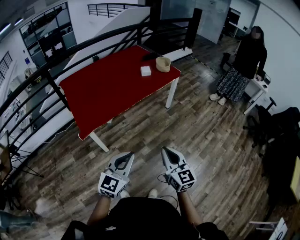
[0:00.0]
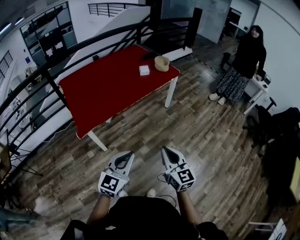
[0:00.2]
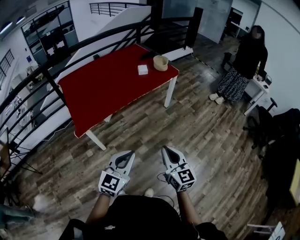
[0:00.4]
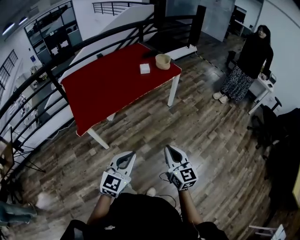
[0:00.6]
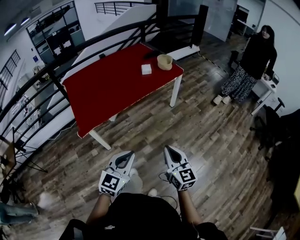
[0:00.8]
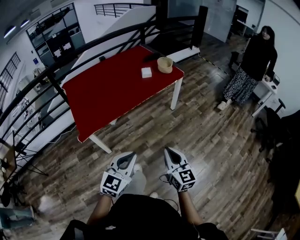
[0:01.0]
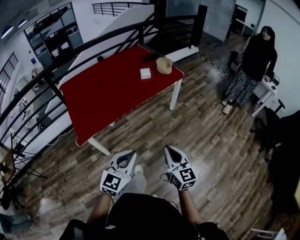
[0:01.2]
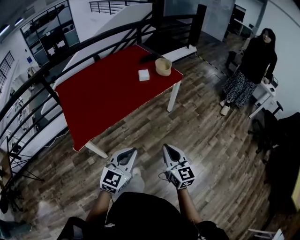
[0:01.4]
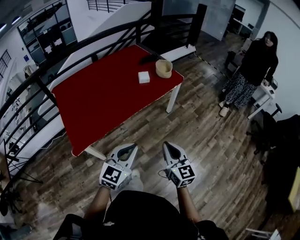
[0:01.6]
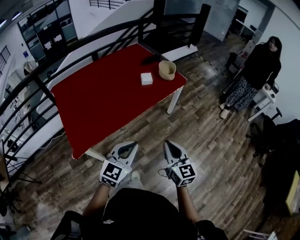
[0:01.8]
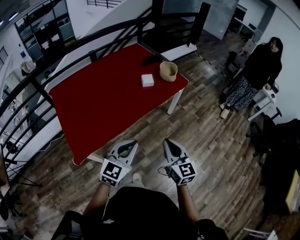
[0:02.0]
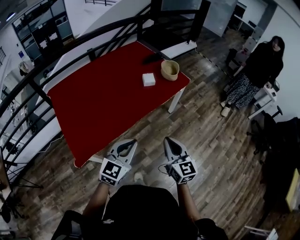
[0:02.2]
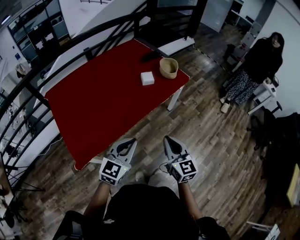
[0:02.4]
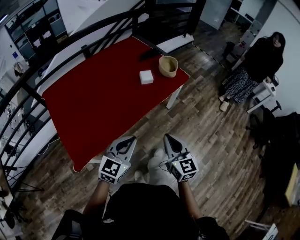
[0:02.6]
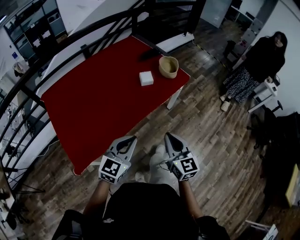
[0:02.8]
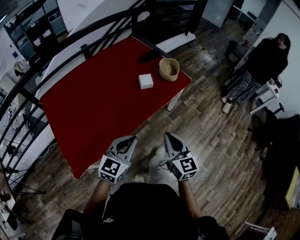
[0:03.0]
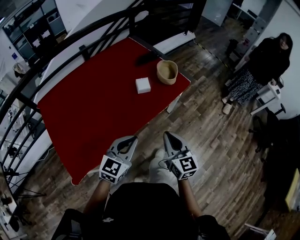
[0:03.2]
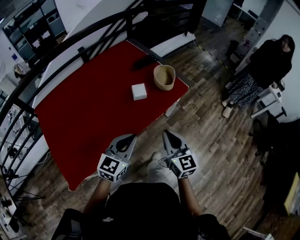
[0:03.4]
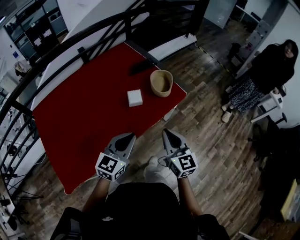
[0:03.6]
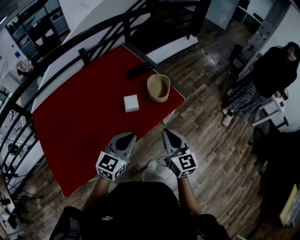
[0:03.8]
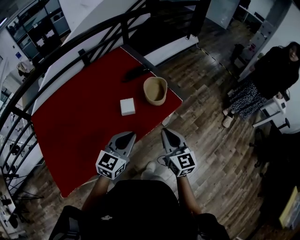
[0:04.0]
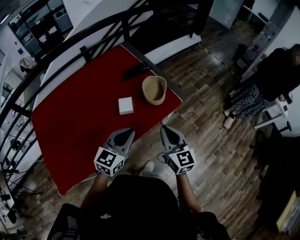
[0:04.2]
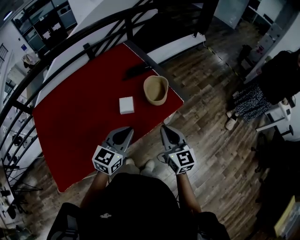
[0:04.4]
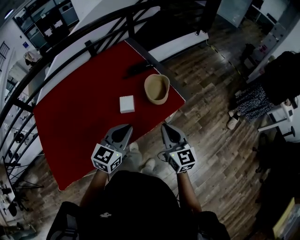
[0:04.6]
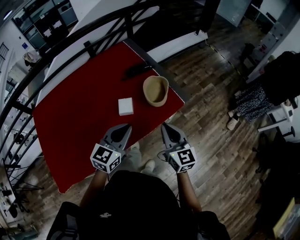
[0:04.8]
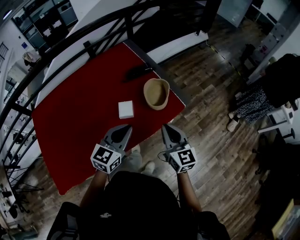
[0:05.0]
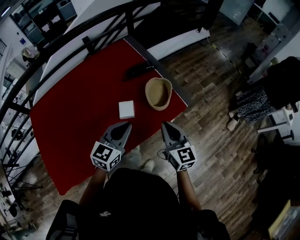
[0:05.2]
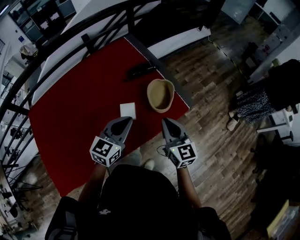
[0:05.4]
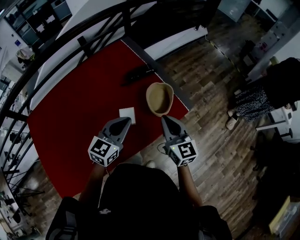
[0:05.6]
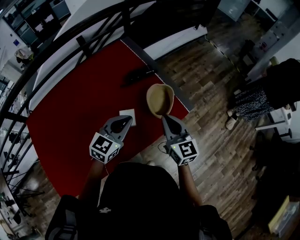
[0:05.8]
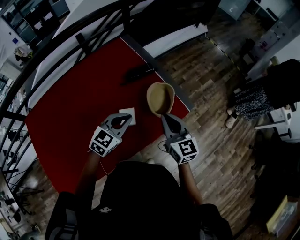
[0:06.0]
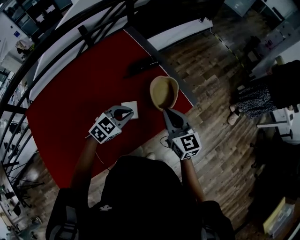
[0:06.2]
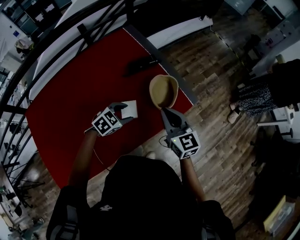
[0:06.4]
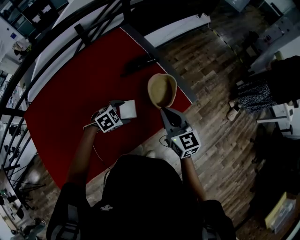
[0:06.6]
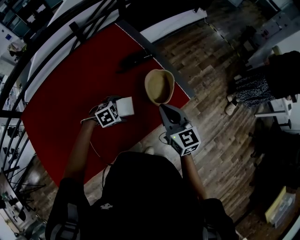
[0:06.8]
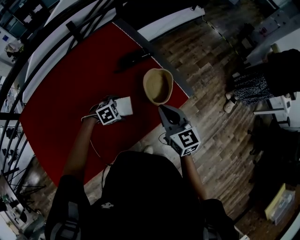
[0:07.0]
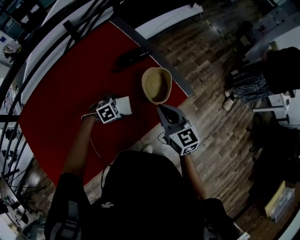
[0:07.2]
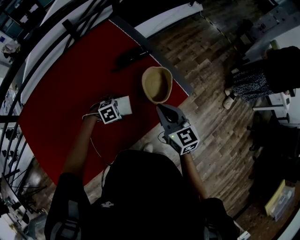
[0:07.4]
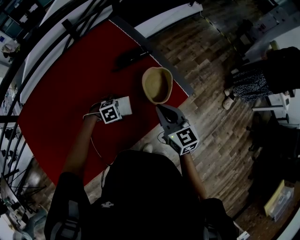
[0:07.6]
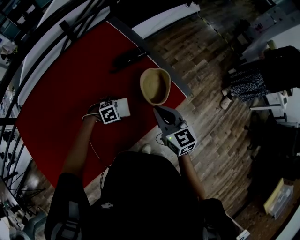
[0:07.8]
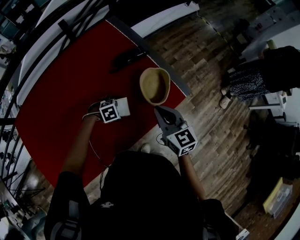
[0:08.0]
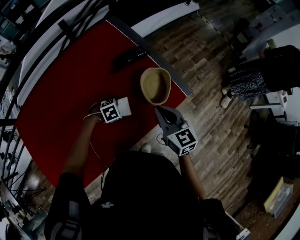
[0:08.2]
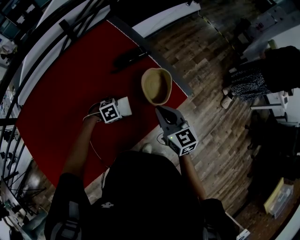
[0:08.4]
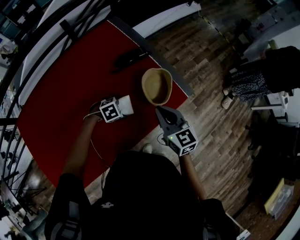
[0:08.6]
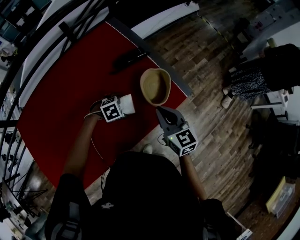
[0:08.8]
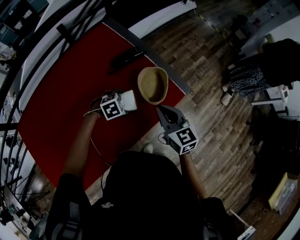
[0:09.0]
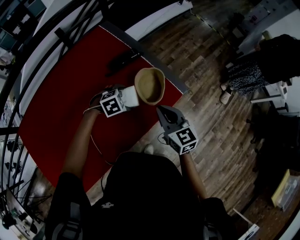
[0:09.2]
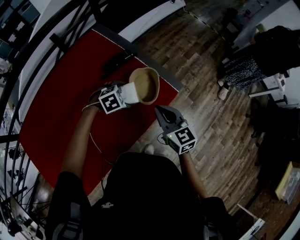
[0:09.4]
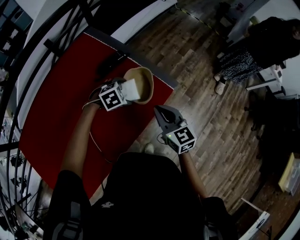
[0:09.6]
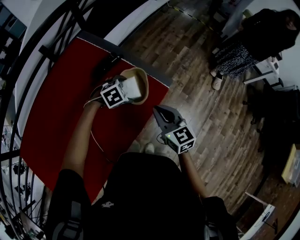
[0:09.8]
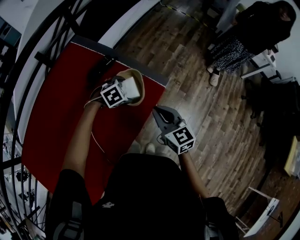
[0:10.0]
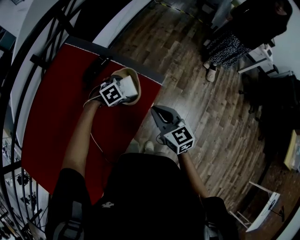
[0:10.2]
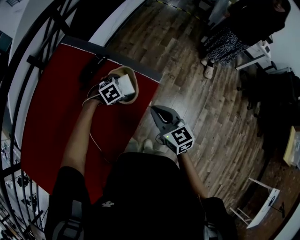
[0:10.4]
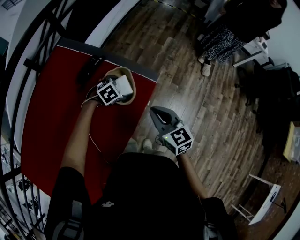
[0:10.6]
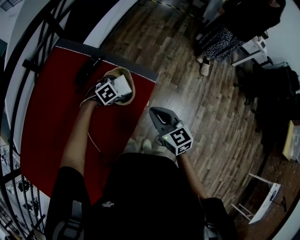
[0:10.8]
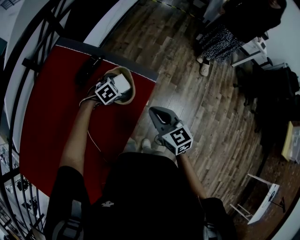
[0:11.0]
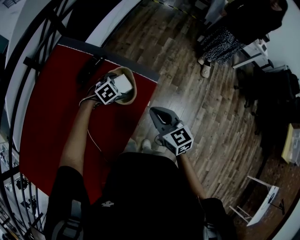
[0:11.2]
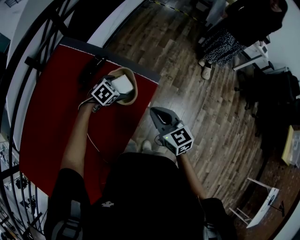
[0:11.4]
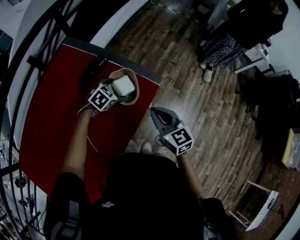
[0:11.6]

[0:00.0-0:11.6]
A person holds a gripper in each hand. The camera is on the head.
0:00.0 to 0:01.4: The grippers both shift forward by roughly 15 cm.
0:01.4 to 0:02.8: The two grippers go about 25 cm forward and to the left.
0:02.8 to 0:04.4: Both grippers travel together forward and to the right, roughly 35 cm.
0:04.4 to 0:05.8: The grippers both shift forward by some 15 cm.
0:05.8 to 0:07.2: The left gripper shifts roughly 25 cm downward, points its fingers some 50 degrees further downward, and opens up.
0:07.2 to 0:08.8: The grippers move only a little.
0:08.8 to 0:10.2: The left gripper goes roughly 20 cm forward and to the right. Meanwhile the right gripper heads to the right, covering about 10 cm.
0:10.2 to 0:11.6: There are only small adjustments of the grippers.

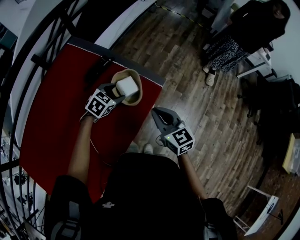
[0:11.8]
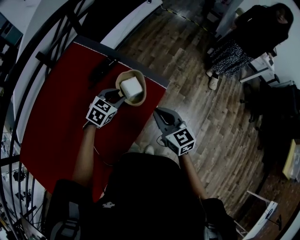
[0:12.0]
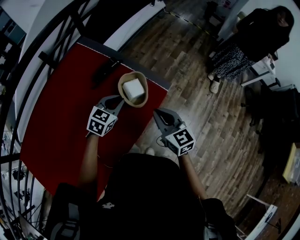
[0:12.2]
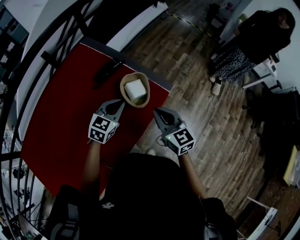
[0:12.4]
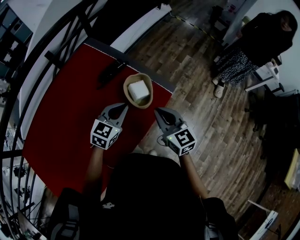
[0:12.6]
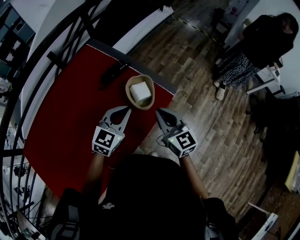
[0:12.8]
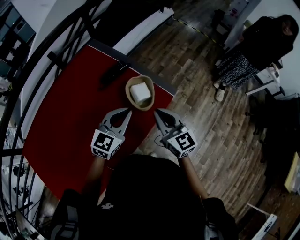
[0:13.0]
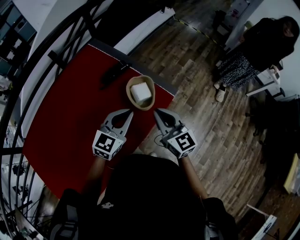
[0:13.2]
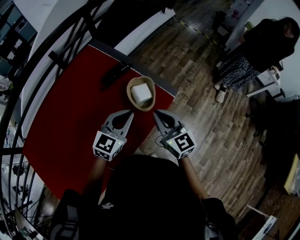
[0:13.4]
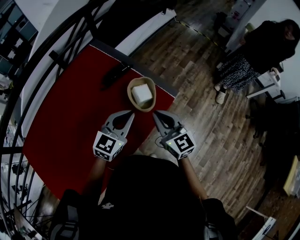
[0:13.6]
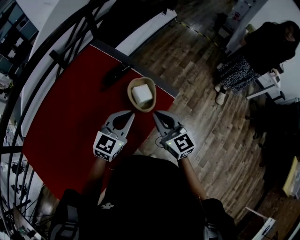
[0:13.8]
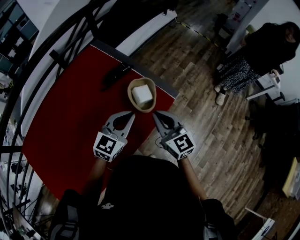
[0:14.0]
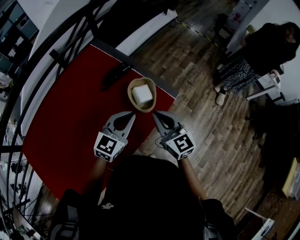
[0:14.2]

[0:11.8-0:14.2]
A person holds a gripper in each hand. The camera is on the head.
0:11.8 to 0:13.0: The left gripper heads upward and backward, covering some 20 cm, points its fingers roughly 30 degrees further upward, and closes up; the right gripper travels upward by approximately 5 cm.
0:13.0 to 0:14.2: The grippers make only small movements.

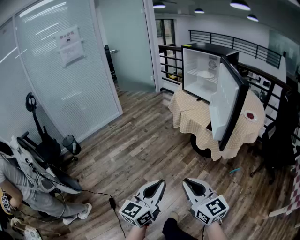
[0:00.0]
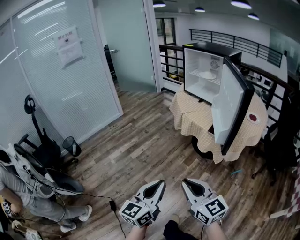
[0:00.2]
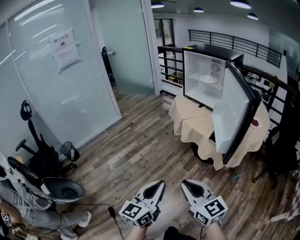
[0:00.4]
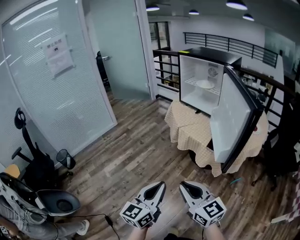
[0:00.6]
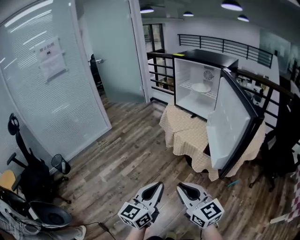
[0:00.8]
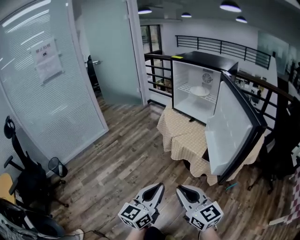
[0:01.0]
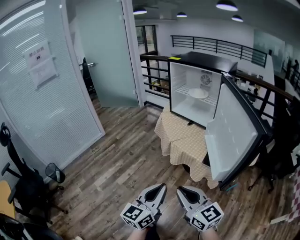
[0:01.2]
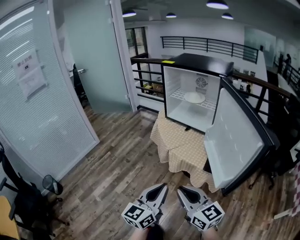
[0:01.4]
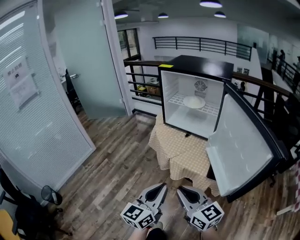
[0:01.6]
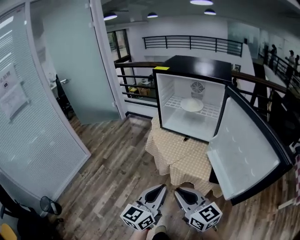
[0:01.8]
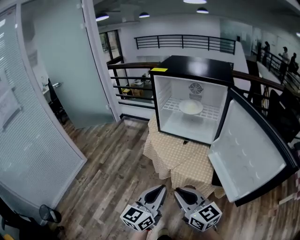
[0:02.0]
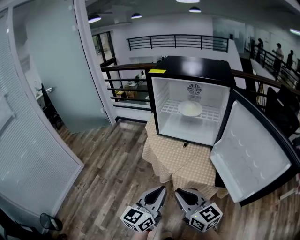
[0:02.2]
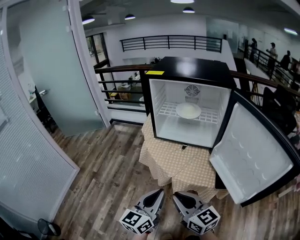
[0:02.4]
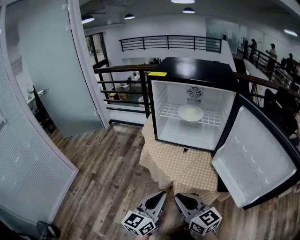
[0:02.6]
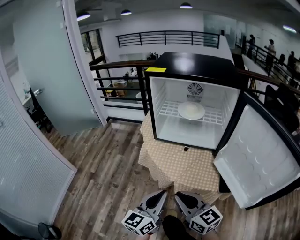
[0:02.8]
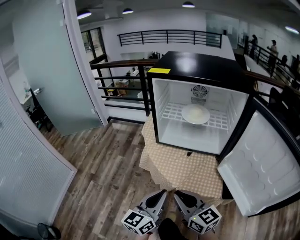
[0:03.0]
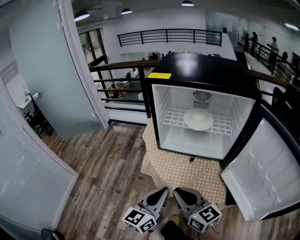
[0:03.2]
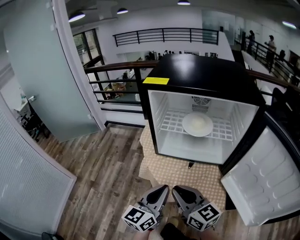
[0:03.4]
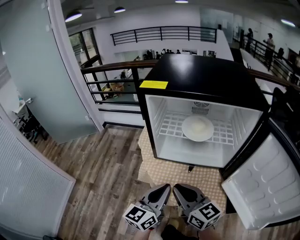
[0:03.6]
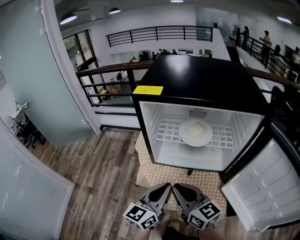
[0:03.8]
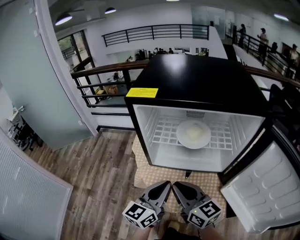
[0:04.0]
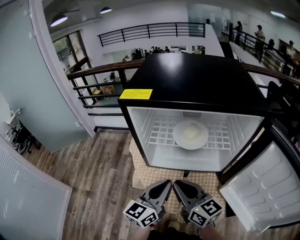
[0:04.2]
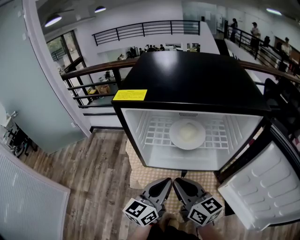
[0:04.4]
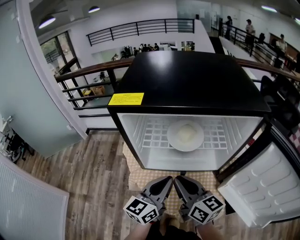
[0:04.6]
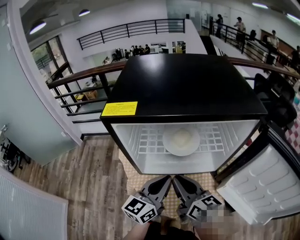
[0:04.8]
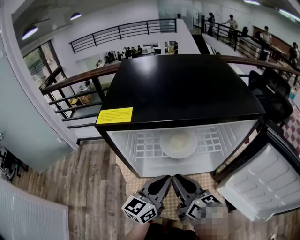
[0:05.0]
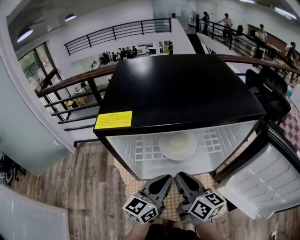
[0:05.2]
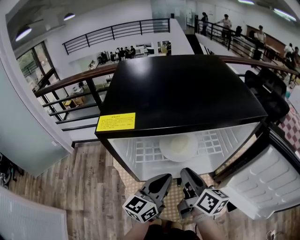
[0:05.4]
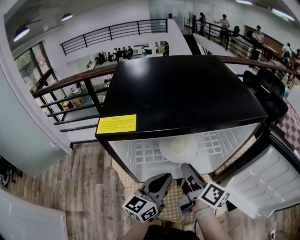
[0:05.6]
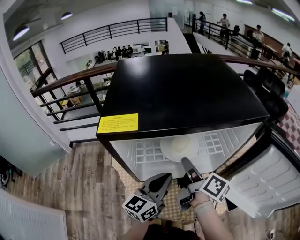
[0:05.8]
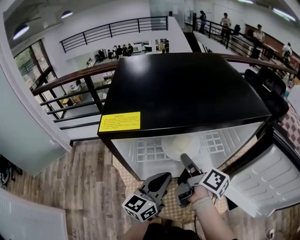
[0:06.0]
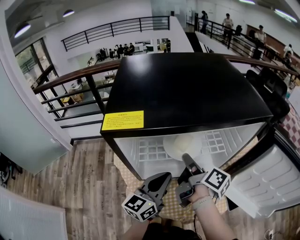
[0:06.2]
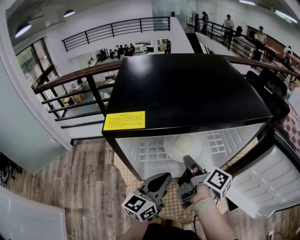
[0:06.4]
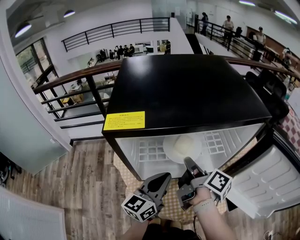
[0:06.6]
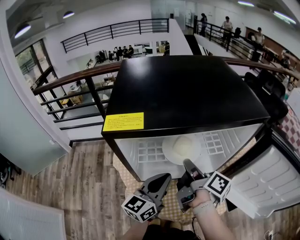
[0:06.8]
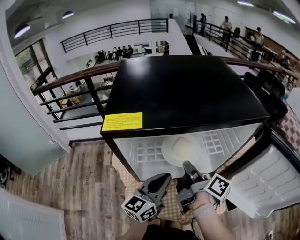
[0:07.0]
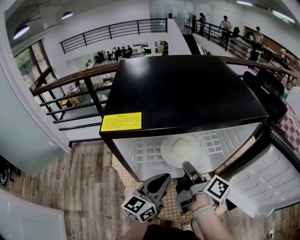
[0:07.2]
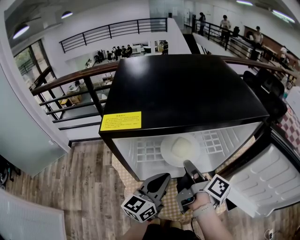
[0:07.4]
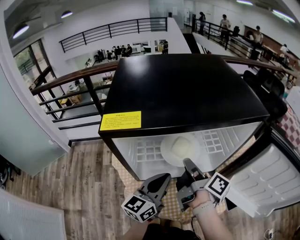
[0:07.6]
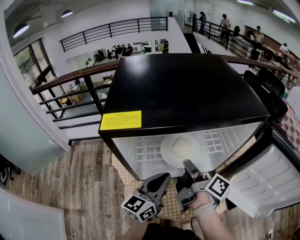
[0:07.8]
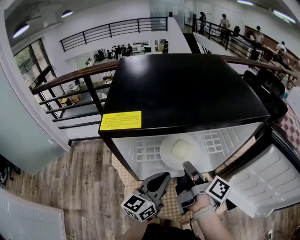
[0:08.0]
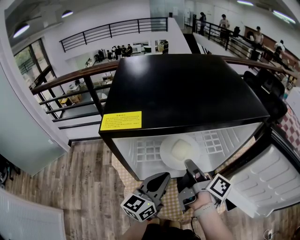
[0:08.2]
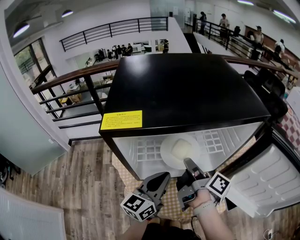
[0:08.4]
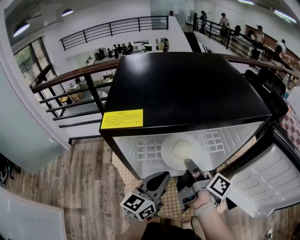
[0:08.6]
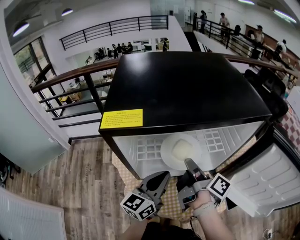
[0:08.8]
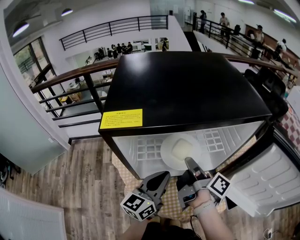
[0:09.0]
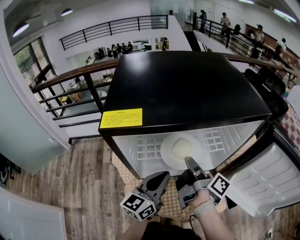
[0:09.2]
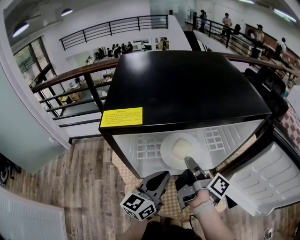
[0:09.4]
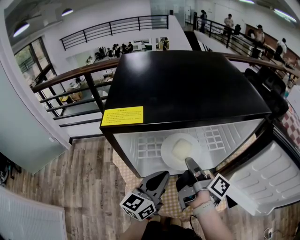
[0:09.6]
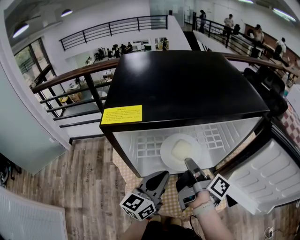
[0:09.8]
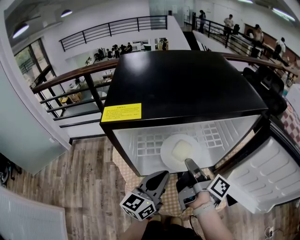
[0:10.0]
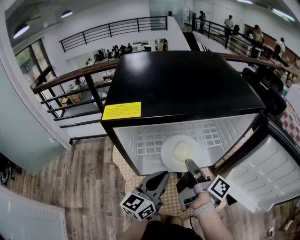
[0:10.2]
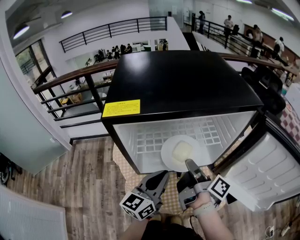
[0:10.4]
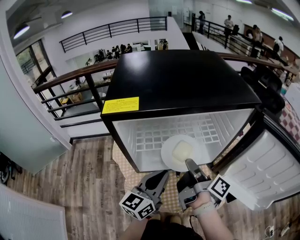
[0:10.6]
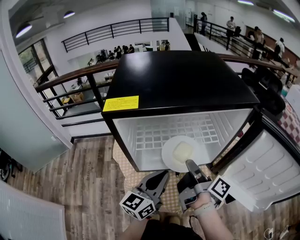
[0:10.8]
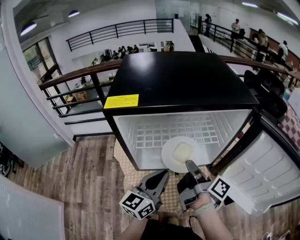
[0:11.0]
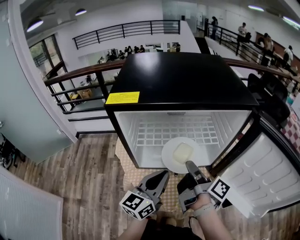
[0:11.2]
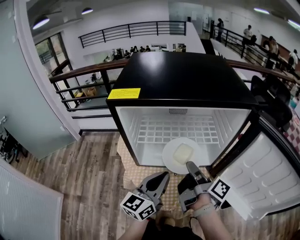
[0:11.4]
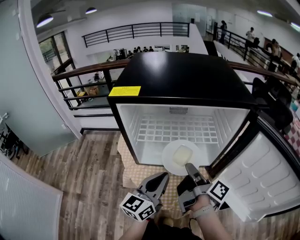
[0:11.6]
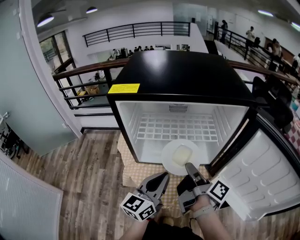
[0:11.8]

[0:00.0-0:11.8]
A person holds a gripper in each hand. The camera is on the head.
0:00.0 to 0:01.4: Both grippers travel together forward, about 35 cm.
0:01.4 to 0:03.0: The right gripper heads forward and to the left, covering approximately 30 cm, while the left gripper heads forward, covering about 30 cm.
0:03.0 to 0:04.4: Both grippers move forward, about 20 cm.
0:04.4 to 0:06.0: The left gripper heads forward, covering some 10 cm. The right gripper shifts roughly 15 cm forward, twists approximately 50 degrees clockwise, seen from behind, and opens.
0:06.0 to 0:07.4: The right gripper closes its fingers.
0:07.4 to 0:10.4: The grippers stay close to where they were, moving slightly.
0:10.4 to 0:11.8: The left gripper moves some 5 cm.
